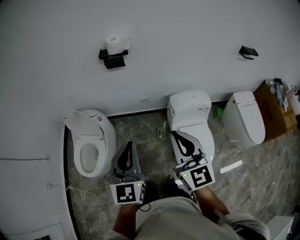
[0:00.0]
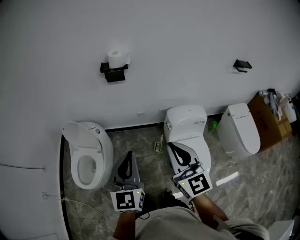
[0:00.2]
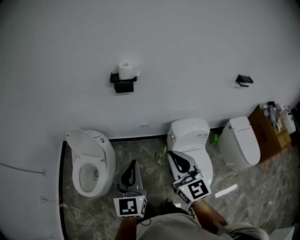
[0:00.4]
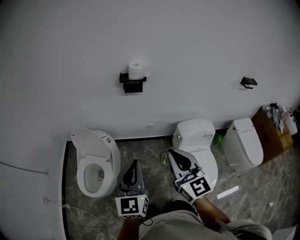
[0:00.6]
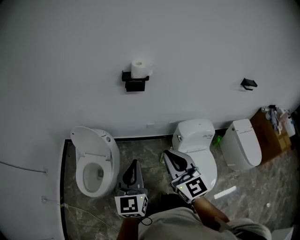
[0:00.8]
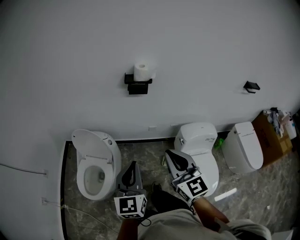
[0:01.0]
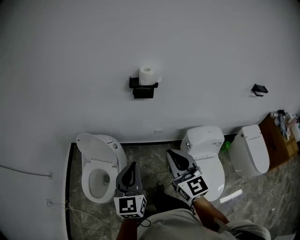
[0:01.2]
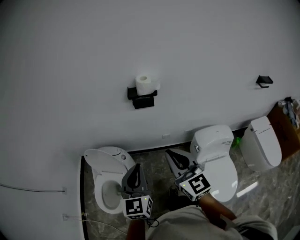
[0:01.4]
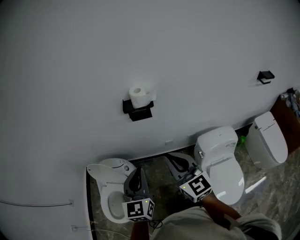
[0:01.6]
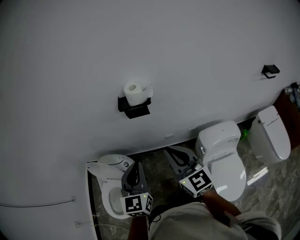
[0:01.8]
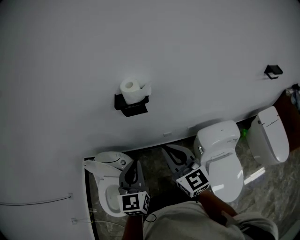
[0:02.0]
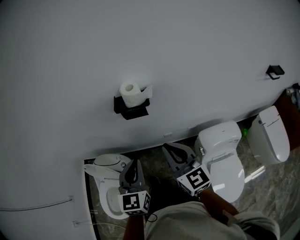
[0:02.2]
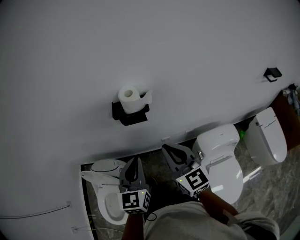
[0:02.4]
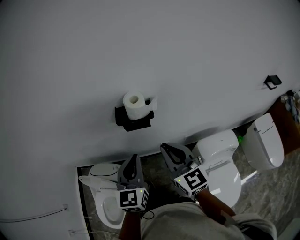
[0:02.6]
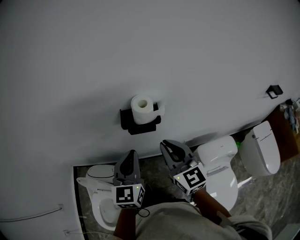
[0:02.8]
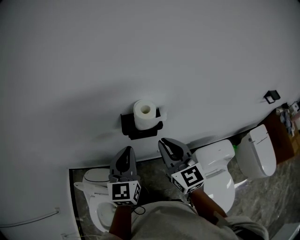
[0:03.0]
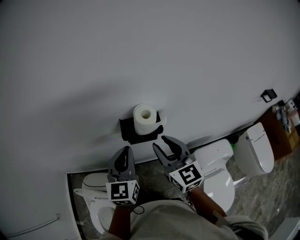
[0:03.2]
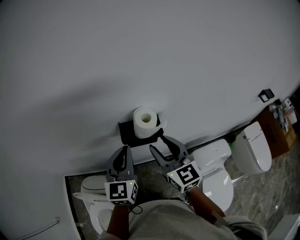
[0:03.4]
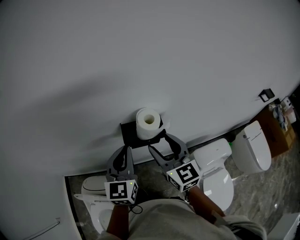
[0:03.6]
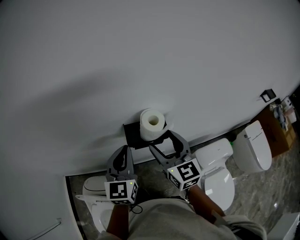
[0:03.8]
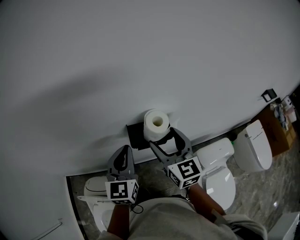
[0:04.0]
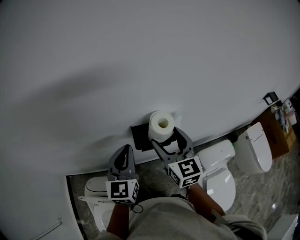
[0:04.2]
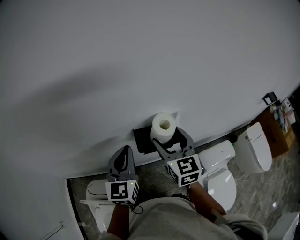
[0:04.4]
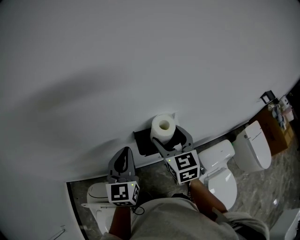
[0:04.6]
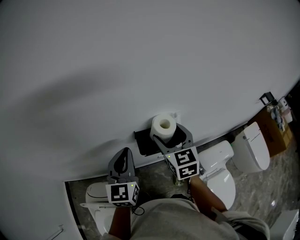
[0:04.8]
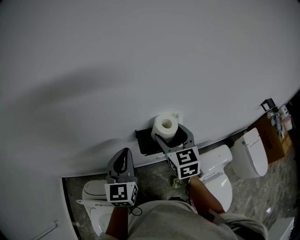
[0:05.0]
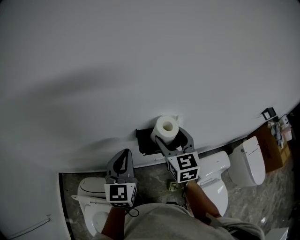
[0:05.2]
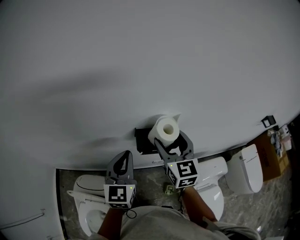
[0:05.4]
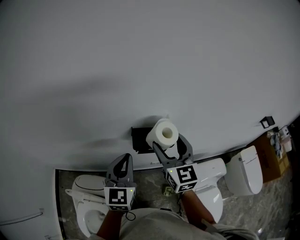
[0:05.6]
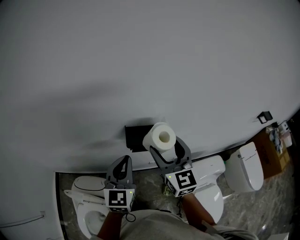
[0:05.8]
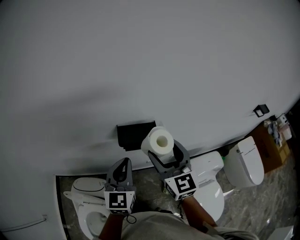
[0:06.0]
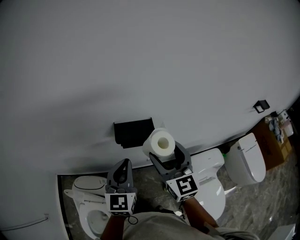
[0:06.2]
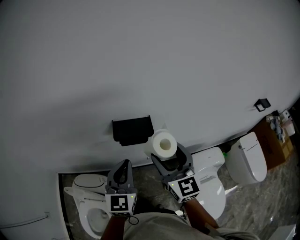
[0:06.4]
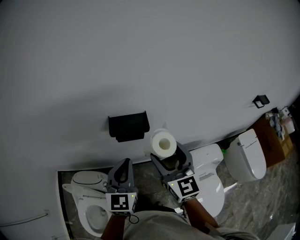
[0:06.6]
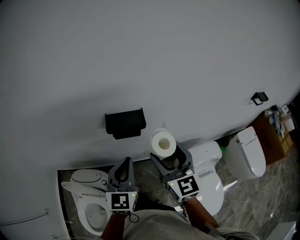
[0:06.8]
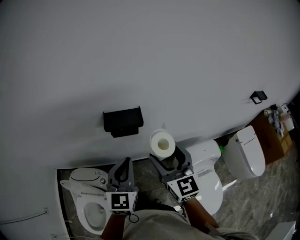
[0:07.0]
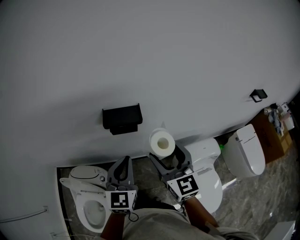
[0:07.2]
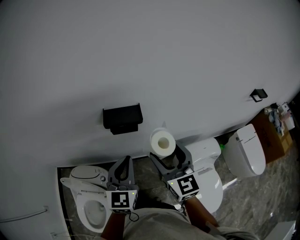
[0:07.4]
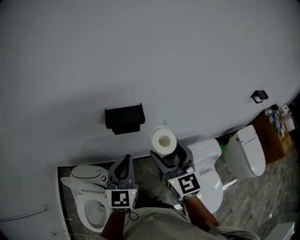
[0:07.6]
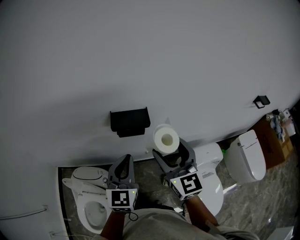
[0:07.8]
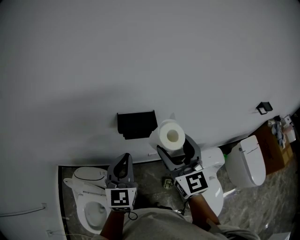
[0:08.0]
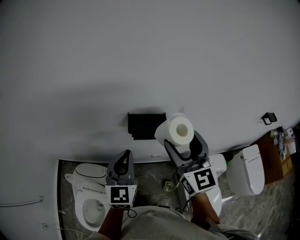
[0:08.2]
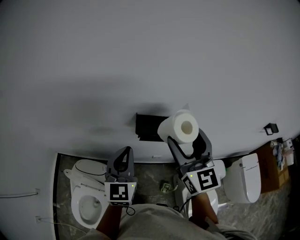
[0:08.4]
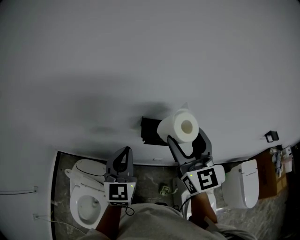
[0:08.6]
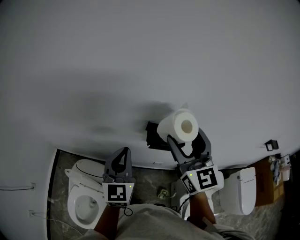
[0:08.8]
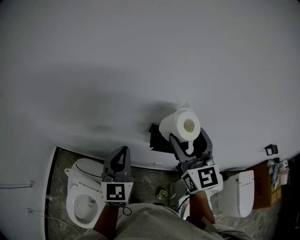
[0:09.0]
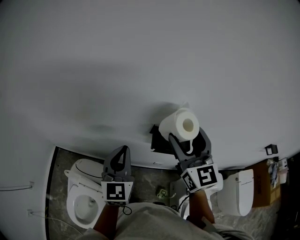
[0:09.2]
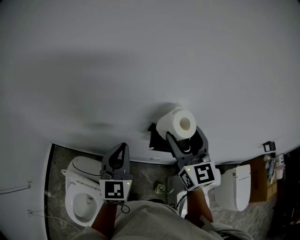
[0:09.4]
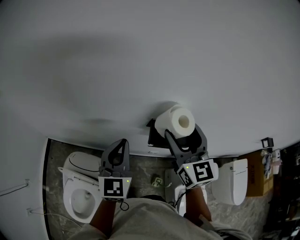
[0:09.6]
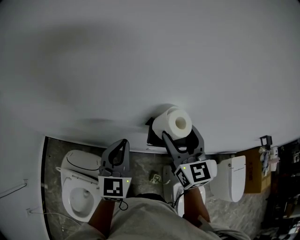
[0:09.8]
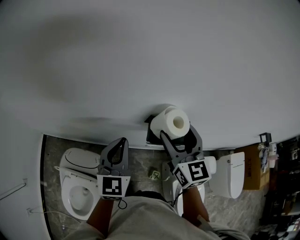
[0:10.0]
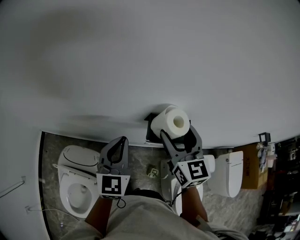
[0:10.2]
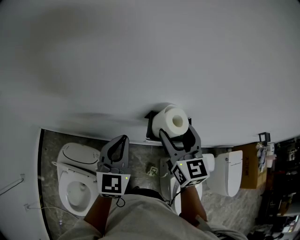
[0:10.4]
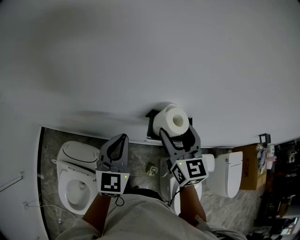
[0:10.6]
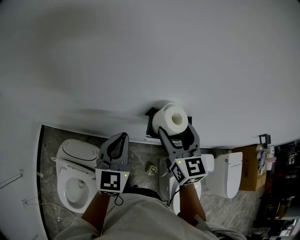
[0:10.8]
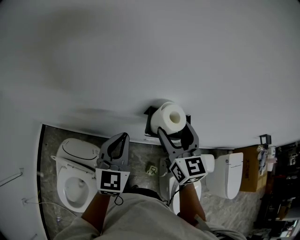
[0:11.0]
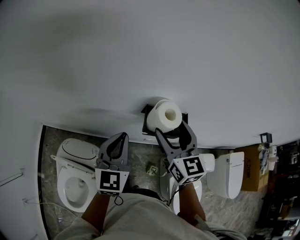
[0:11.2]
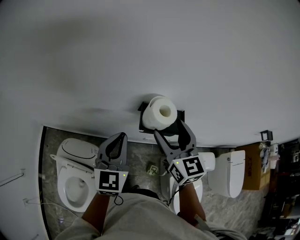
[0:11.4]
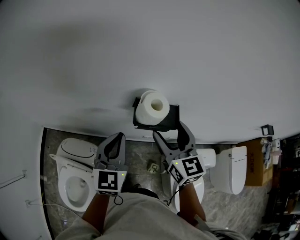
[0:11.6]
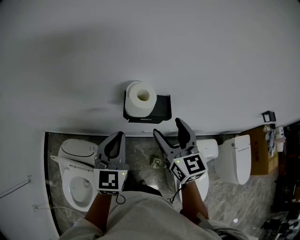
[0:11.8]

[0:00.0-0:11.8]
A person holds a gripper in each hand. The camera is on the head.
0:00.0 to 0:01.4: The grippers both shift forward and to the left by roughly 20 cm.
0:01.4 to 0:03.0: Both grippers move forward, about 30 cm.
0:03.0 to 0:04.4: The left gripper is displaced forward and to the left by some 10 cm; the right gripper travels forward by approximately 10 cm, and opens.
0:04.4 to 0:06.0: The right gripper heads backward, covering some 10 cm. The left gripper travels backward and to the right by approximately 10 cm.
0:06.0 to 0:07.4: The two grippers go approximately 10 cm backward and to the right.
0:07.4 to 0:08.8: The right gripper is displaced to the left, forward and upward by about 20 cm. Meanwhile the left gripper goes about 20 cm to the left and forward.
0:08.8 to 0:10.4: The left gripper shifts roughly 10 cm forward and downward. Meanwhile the right gripper travels downward and forward by roughly 15 cm, and turns by about 20 degrees.
0:10.4 to 0:11.8: The grippers both shift to the right and backward by some 10 cm.

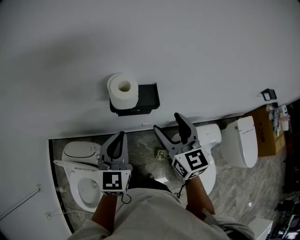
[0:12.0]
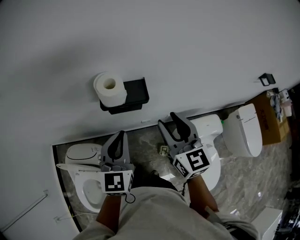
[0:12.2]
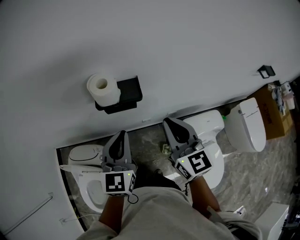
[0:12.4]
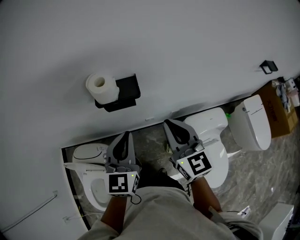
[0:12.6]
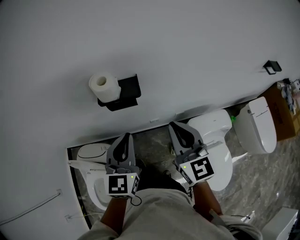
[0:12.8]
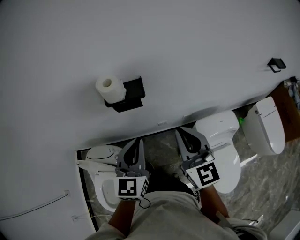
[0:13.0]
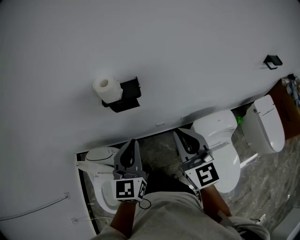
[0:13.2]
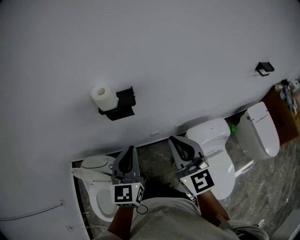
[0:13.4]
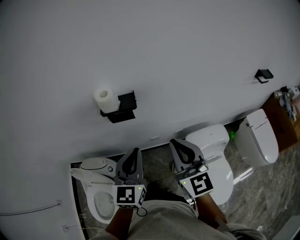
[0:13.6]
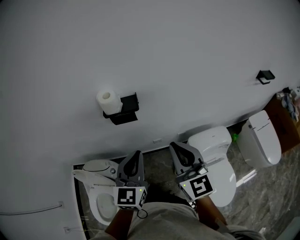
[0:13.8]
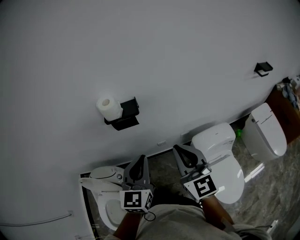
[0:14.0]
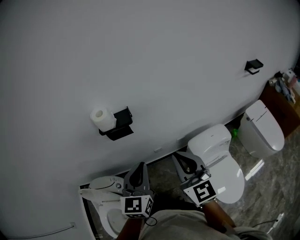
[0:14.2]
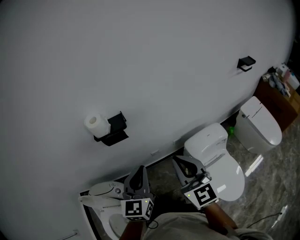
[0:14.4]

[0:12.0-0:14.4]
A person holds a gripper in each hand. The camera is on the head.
0:12.0 to 0:13.2: The two grippers go some 15 cm backward and to the right. The right gripper closes its fingers.
0:13.2 to 0:14.4: The right gripper travels backward by about 5 cm. Meanwhile the left gripper goes about 5 cm to the right.

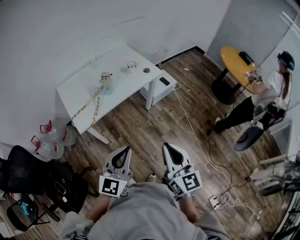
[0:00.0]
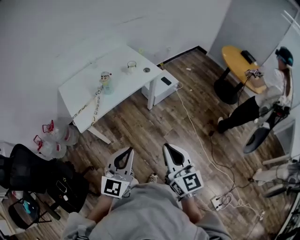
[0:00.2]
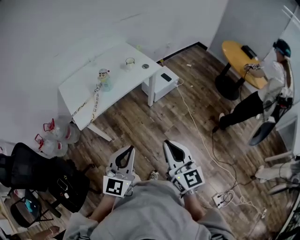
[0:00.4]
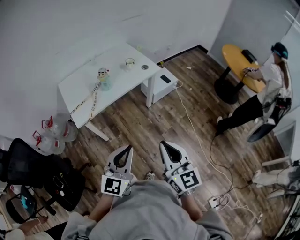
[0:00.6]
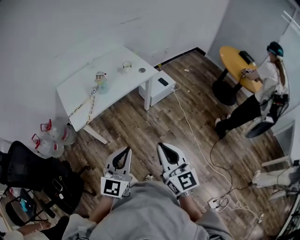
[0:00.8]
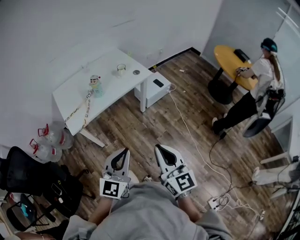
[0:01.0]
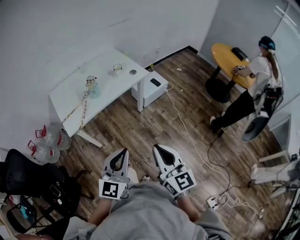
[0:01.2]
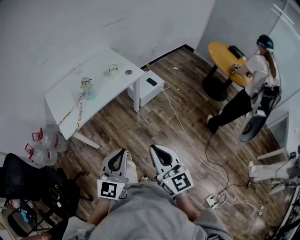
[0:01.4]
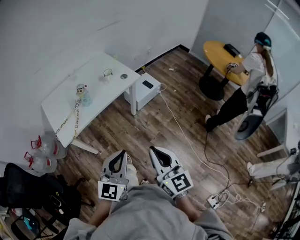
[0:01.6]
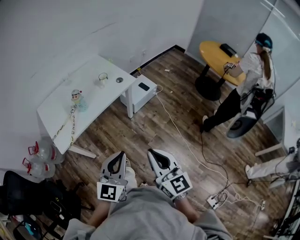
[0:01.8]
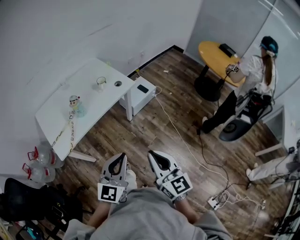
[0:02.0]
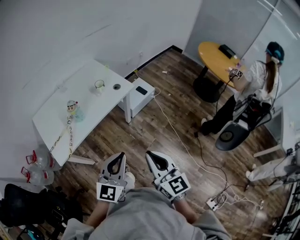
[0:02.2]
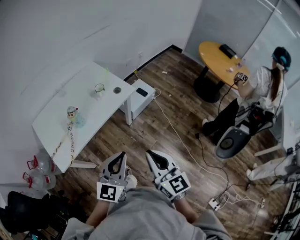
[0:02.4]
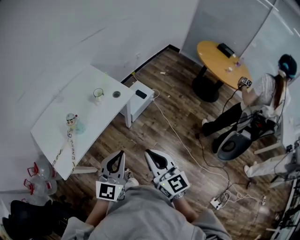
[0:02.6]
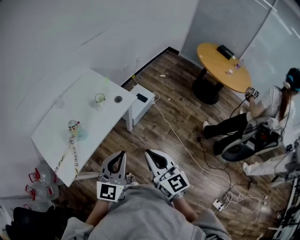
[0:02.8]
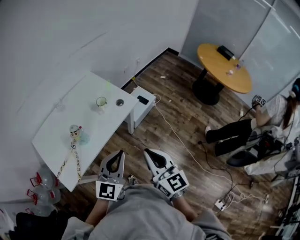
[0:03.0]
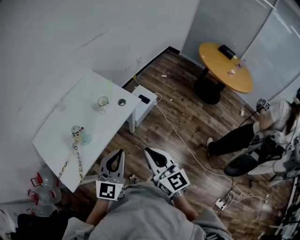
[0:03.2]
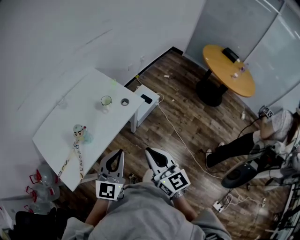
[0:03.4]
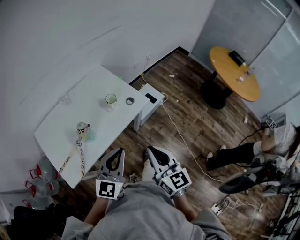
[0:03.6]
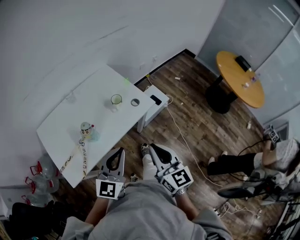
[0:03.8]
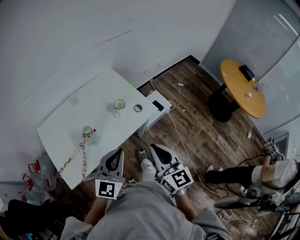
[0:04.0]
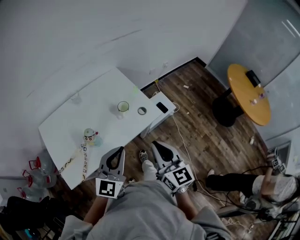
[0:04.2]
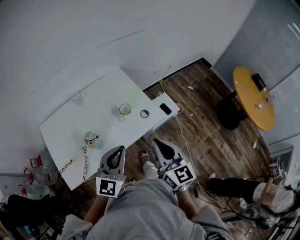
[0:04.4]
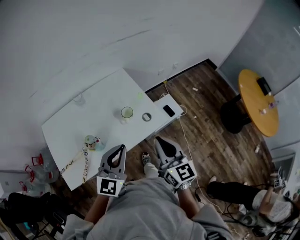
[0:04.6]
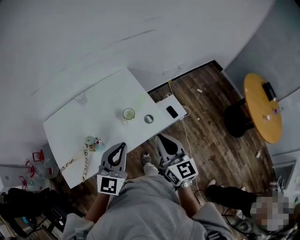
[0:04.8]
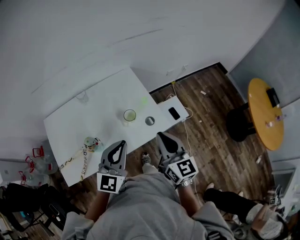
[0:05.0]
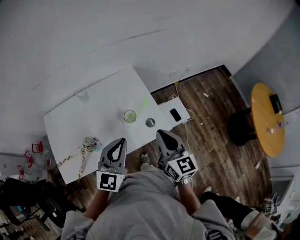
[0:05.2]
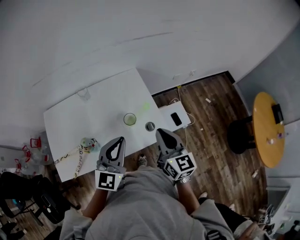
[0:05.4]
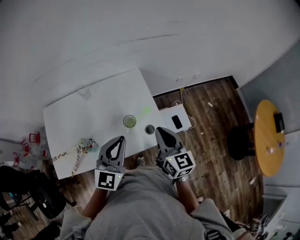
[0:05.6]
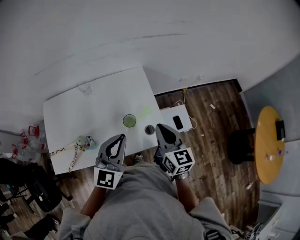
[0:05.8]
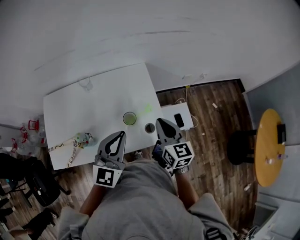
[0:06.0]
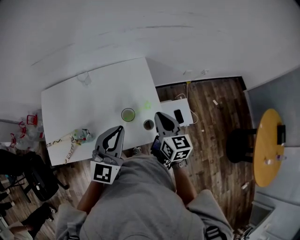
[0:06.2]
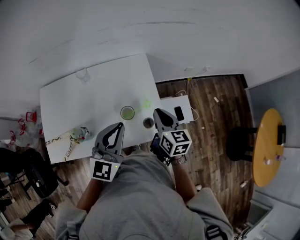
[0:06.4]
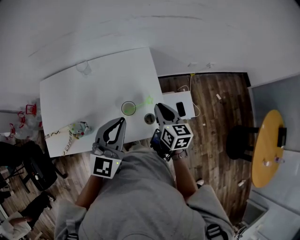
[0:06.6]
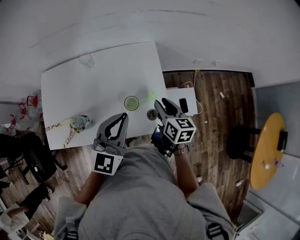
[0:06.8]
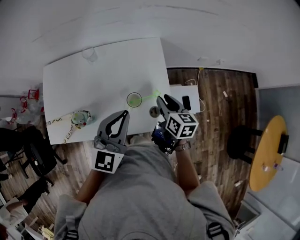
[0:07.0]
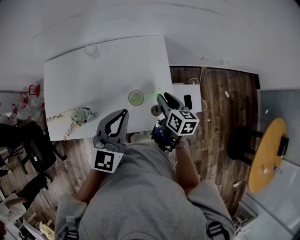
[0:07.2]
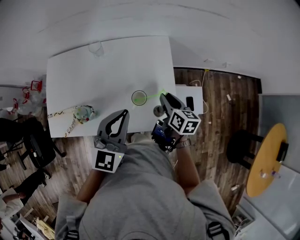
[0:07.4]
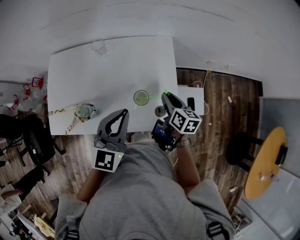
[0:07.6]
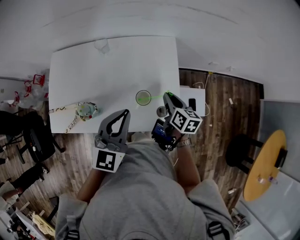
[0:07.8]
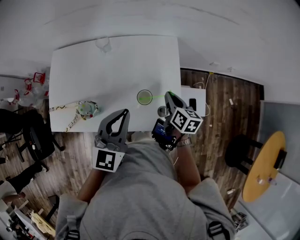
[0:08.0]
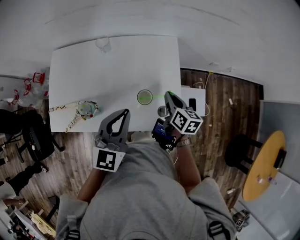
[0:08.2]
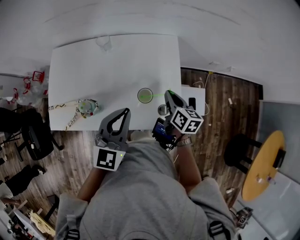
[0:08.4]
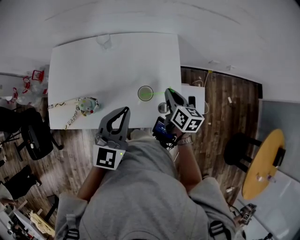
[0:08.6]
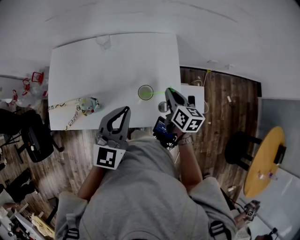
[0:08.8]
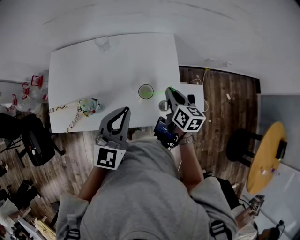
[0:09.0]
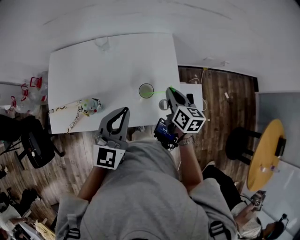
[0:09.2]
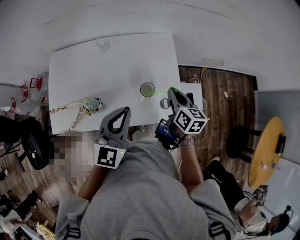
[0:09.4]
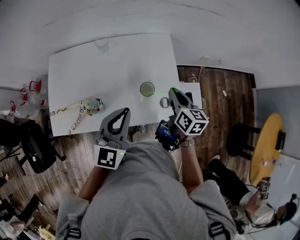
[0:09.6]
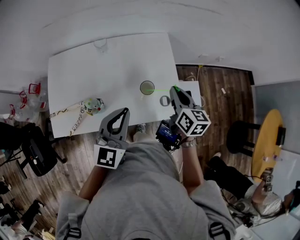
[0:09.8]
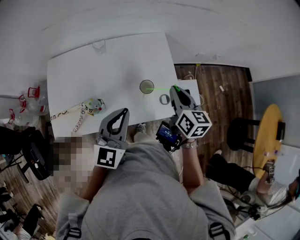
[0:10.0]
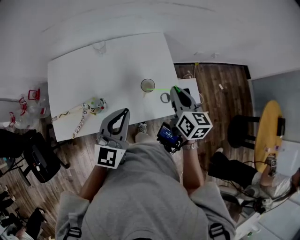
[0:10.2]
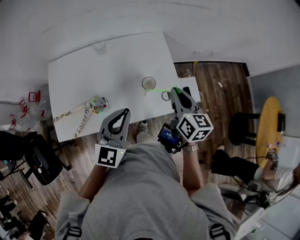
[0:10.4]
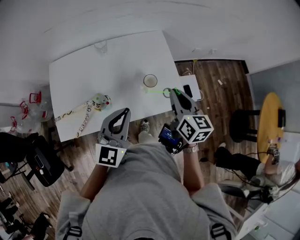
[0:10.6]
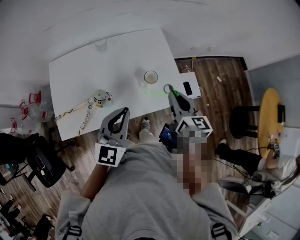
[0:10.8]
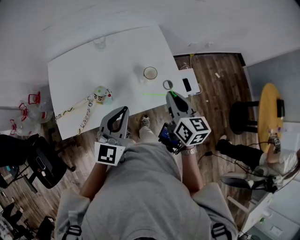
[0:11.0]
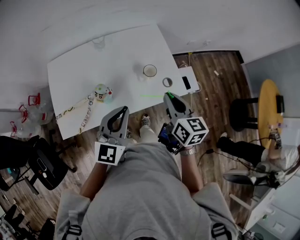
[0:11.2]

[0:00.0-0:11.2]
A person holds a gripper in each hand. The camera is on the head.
0:00.0 to 0:01.6: The grippers both shift to the right by about 10 cm.
0:01.6 to 0:03.2: The two grippers go approximately 25 cm forward.
0:03.2 to 0:04.8: Both grippers move forward, about 25 cm.
0:04.8 to 0:06.4: The left gripper goes approximately 15 cm forward. Meanwhile the right gripper travels forward and downward by about 25 cm, and rotates approximately 20 degrees.
0:06.4 to 0:08.0: The left gripper moves about 5 cm; the right gripper goes about 10 cm downward and forward, and opens, then closes again.
0:08.0 to 0:09.6: The right gripper moves upward and backward, about 10 cm. The left gripper ends up roughly 5 cm from where it was.
0:09.6 to 0:11.2: The left gripper heads backward and to the left, covering about 10 cm. Meanwhile the right gripper travels backward, upward and to the left by some 20 cm.
